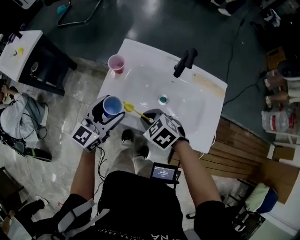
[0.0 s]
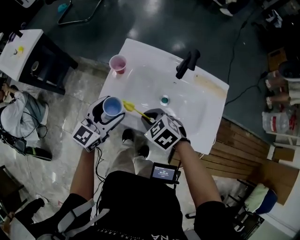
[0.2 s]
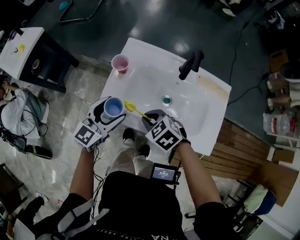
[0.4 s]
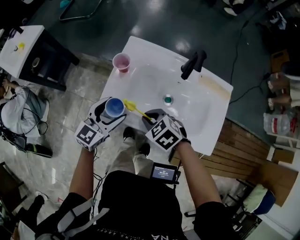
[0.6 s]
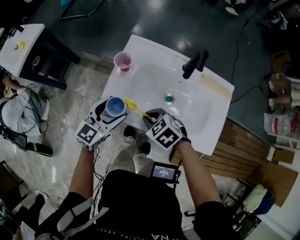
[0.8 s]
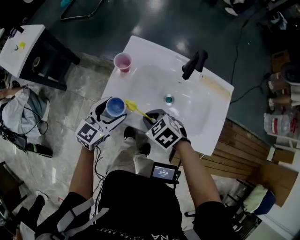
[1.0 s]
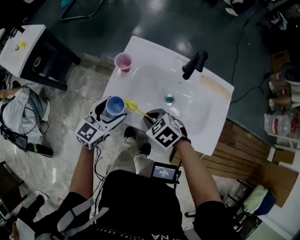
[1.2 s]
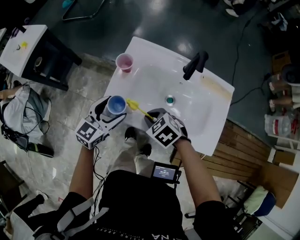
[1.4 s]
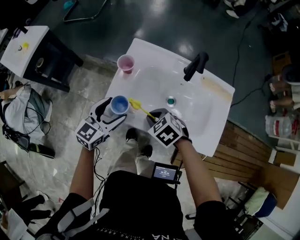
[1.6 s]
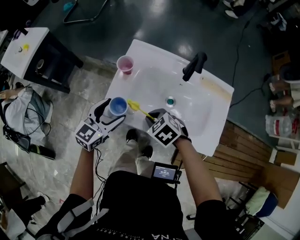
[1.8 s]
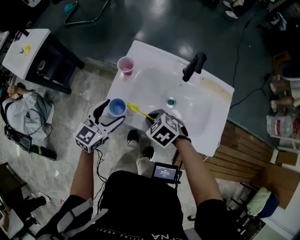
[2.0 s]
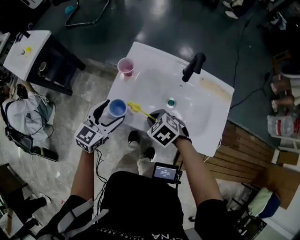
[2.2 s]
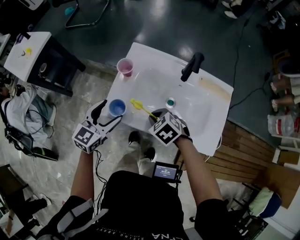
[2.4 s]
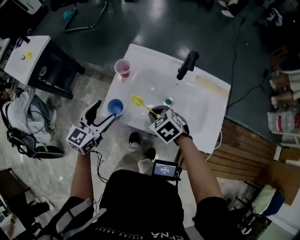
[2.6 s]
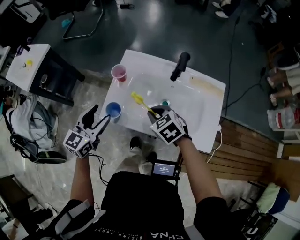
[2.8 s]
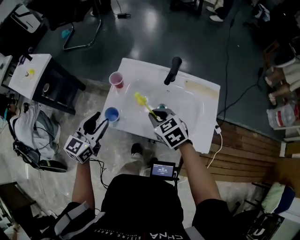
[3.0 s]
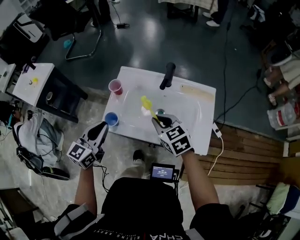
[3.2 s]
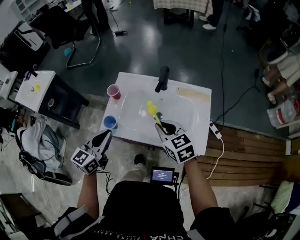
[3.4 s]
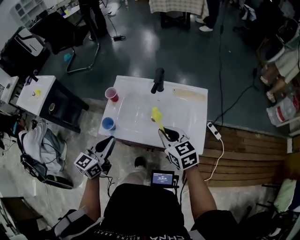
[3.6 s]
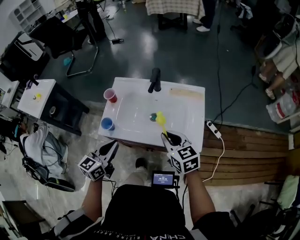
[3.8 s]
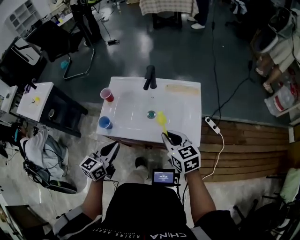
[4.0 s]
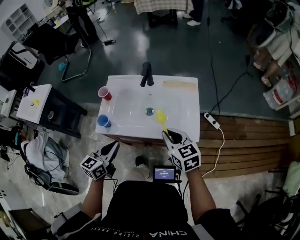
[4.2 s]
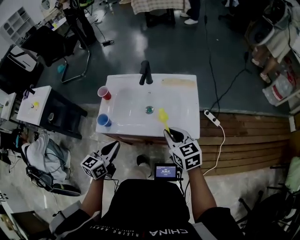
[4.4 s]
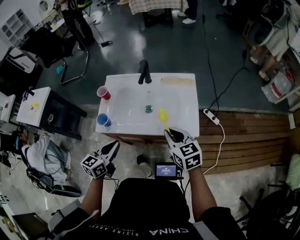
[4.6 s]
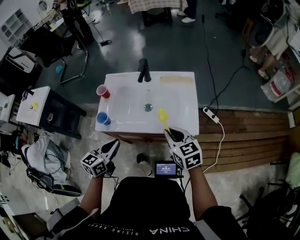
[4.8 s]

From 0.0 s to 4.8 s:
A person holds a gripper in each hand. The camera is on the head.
From 0.0 s to 1.6 s: The left gripper is displaced downward by roughly 5 cm.
From 1.6 s to 3.2 s: The left gripper moves upward, some 10 cm, and closes. Meanwhile the right gripper travels upward and to the right by about 15 cm, and swivels about 30 degrees.
From 3.2 s to 4.8 s: The left gripper moves backward, to the right and downward, approximately 15 cm. Meanwhile the right gripper is displaced backward and to the right by approximately 20 cm, and turns by some 20 degrees.

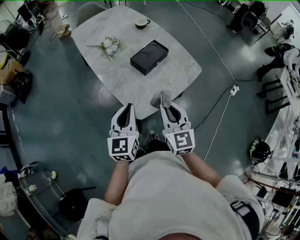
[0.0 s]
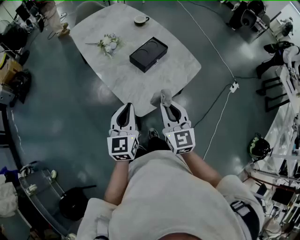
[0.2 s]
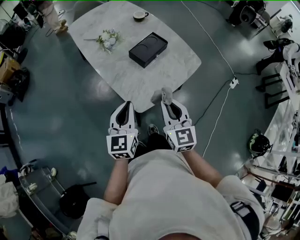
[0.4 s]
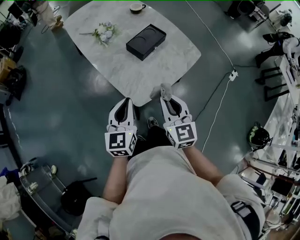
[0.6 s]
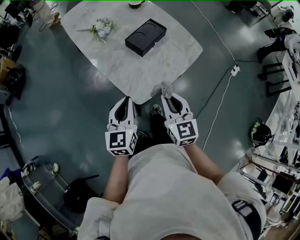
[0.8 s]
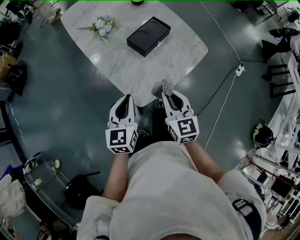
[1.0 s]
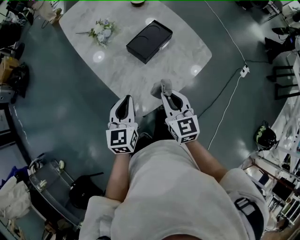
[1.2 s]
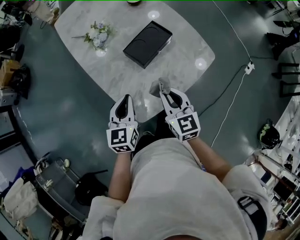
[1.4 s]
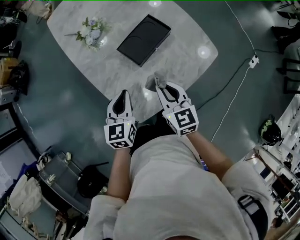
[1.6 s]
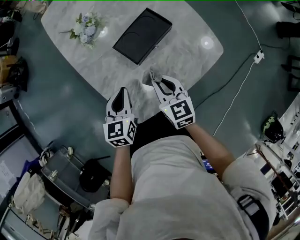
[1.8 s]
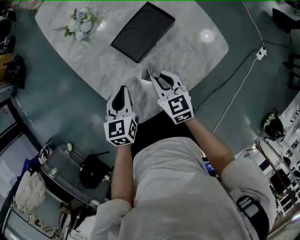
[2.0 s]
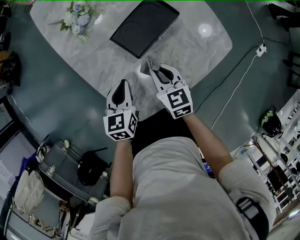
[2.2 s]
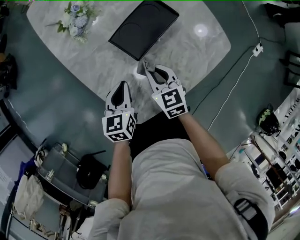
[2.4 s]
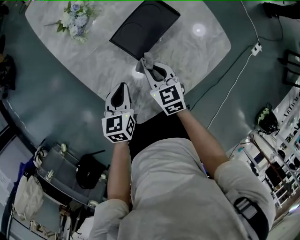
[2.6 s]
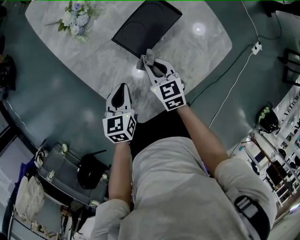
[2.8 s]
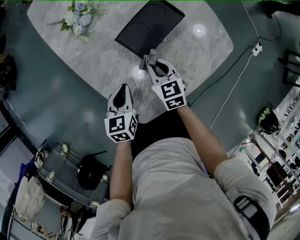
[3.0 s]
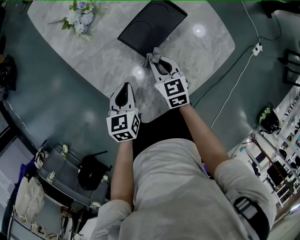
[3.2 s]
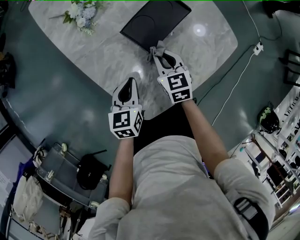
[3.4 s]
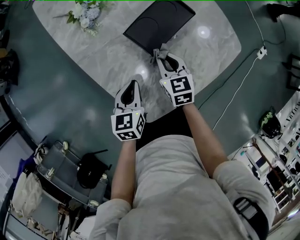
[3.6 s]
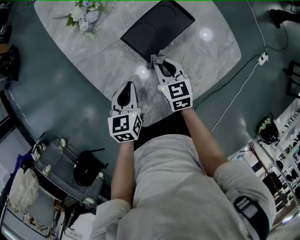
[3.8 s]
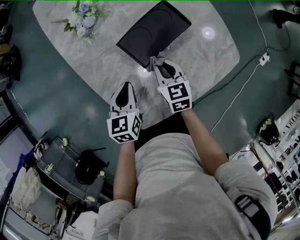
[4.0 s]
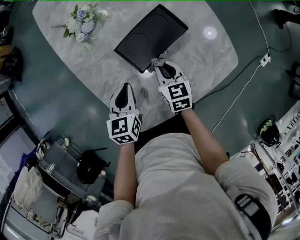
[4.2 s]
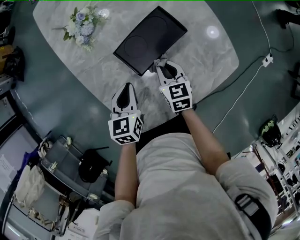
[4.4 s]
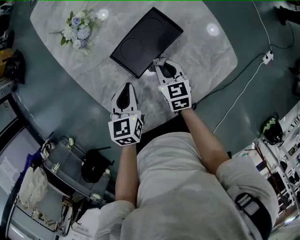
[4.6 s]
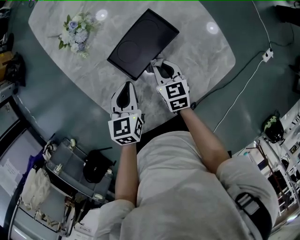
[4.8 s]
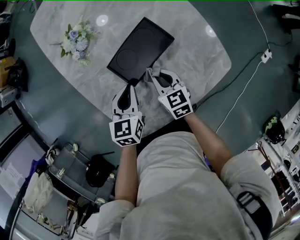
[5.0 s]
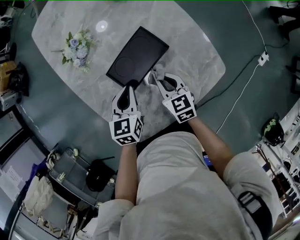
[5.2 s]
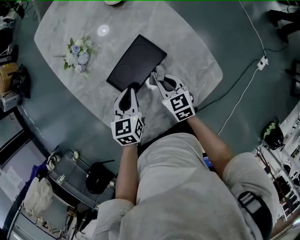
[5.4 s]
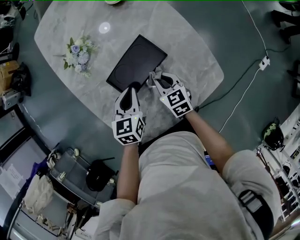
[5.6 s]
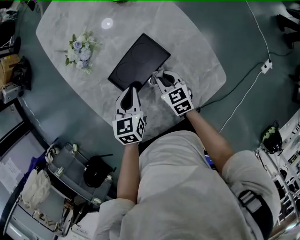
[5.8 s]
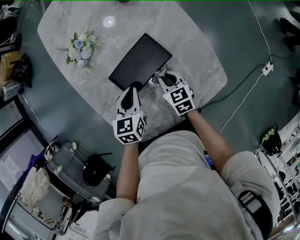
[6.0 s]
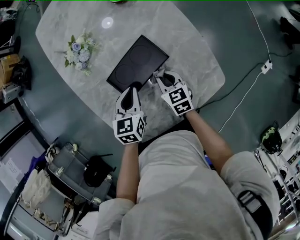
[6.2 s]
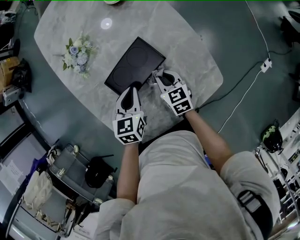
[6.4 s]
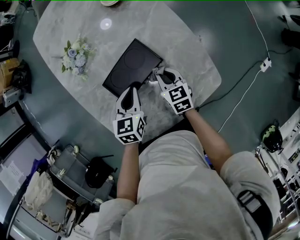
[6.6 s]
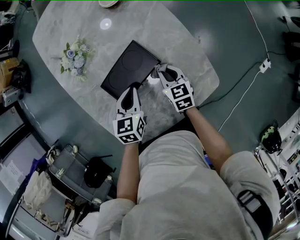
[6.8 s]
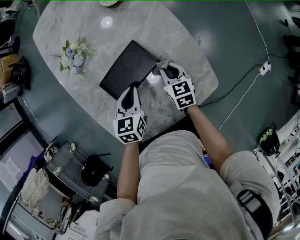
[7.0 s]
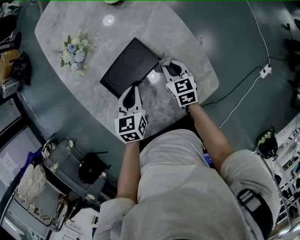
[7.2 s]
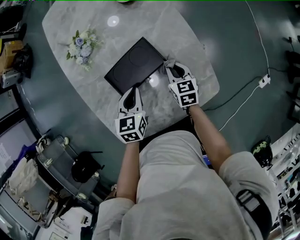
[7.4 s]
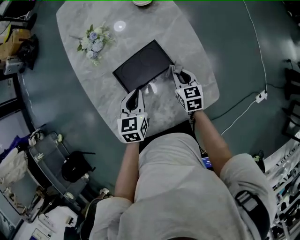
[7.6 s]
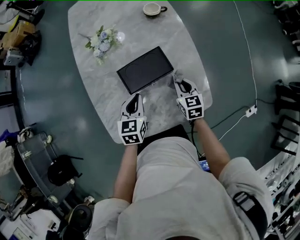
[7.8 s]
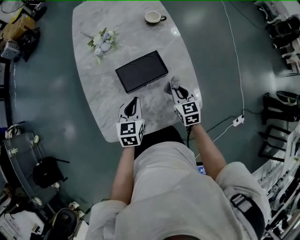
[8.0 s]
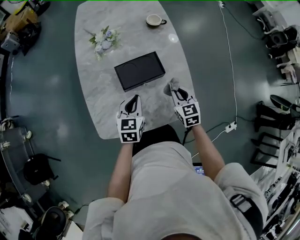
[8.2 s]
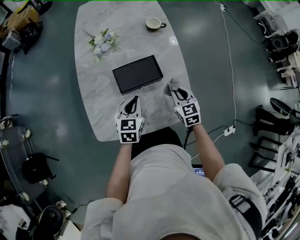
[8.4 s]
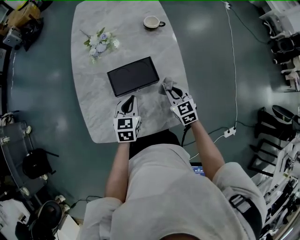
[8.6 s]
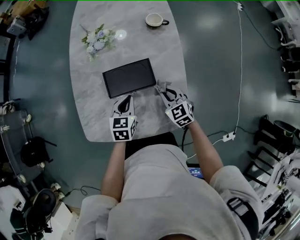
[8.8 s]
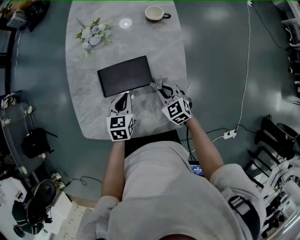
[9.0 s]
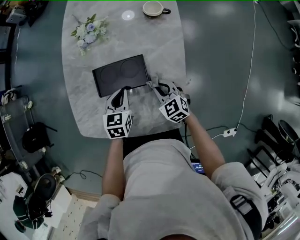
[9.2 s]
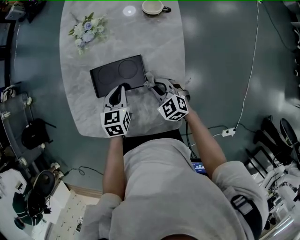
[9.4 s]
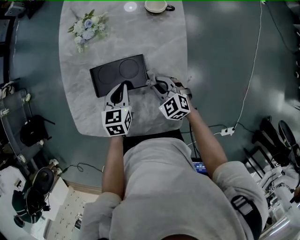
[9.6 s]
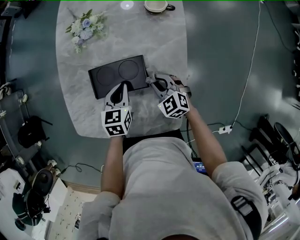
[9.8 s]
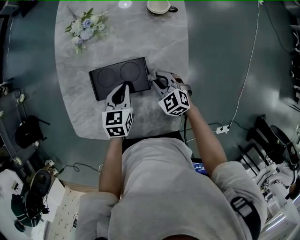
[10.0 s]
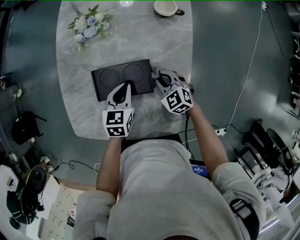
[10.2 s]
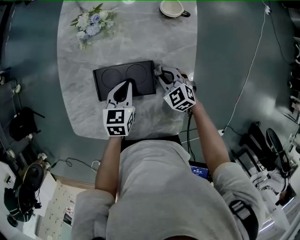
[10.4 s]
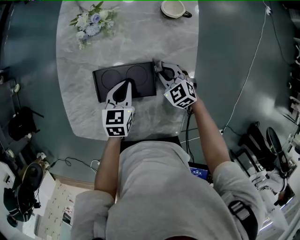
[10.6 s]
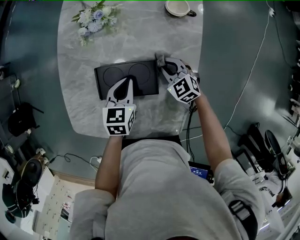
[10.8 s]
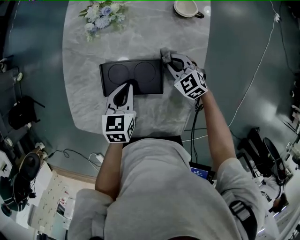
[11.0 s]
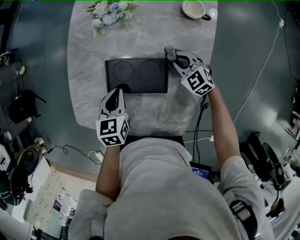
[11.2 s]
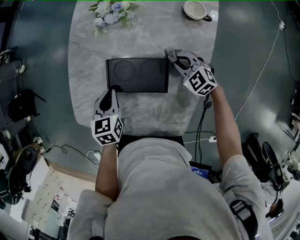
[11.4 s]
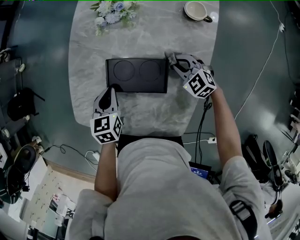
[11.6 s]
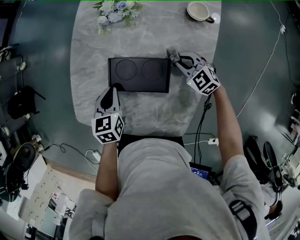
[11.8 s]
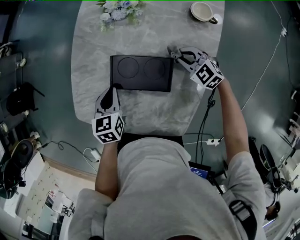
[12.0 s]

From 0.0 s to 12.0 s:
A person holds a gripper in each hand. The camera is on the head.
From 0.0 s to 1.6 s: Both grippers move forward and downward, roughly 25 cm. The right gripper changes its angle by about 20 degrees.
From 1.6 s to 3.0 s: The left gripper shifts about 10 cm downward; the right gripper goes about 15 cm downward and forward.
From 3.0 s to 4.4 s: The right gripper heads to the right, covering some 5 cm. Meanwhile the left gripper travels forward by roughly 5 cm.
From 4.4 s to 6.0 s: The left gripper travels to the right and forward by approximately 10 cm. Meanwhile the right gripper moves to the right, roughly 5 cm.
From 6.0 s to 7.6 s: The right gripper is displaced to the right by approximately 10 cm.
From 7.6 s to 9.0 s: The right gripper travels upward and back again, approximately 10 cm each way, and turns by roughly 50 degrees.
From 9.0 s to 10.4 s: The grippers both shift forward by some 10 cm.
From 10.4 s to 12.0 s: The left gripper shifts by approximately 15 cm, and swivels approximately 20 degrees. Meanwhile the right gripper shifts by about 5 cm, and rotates about 20 degrees.

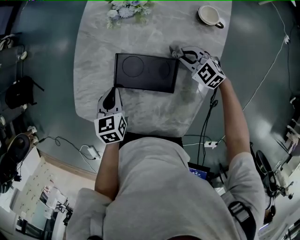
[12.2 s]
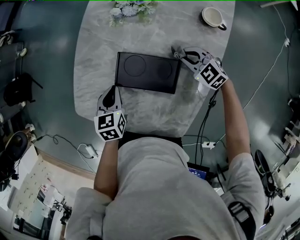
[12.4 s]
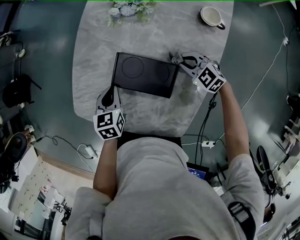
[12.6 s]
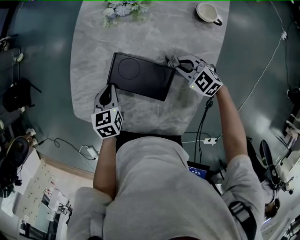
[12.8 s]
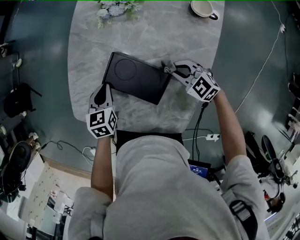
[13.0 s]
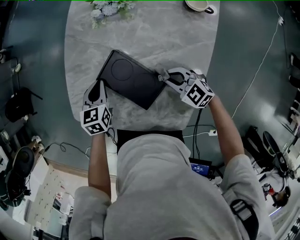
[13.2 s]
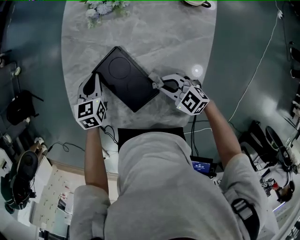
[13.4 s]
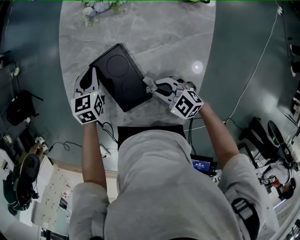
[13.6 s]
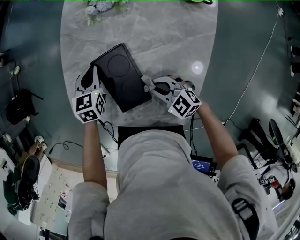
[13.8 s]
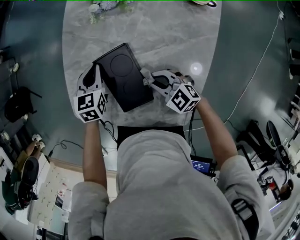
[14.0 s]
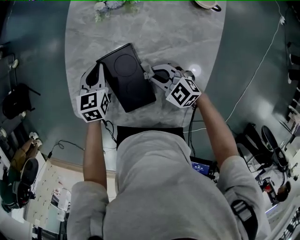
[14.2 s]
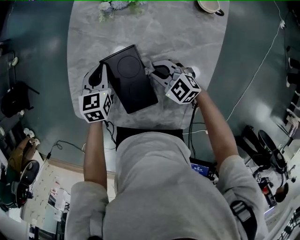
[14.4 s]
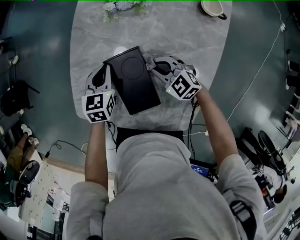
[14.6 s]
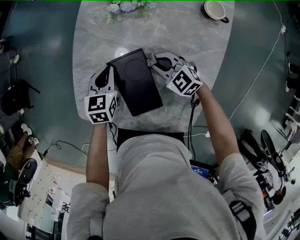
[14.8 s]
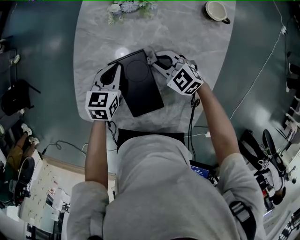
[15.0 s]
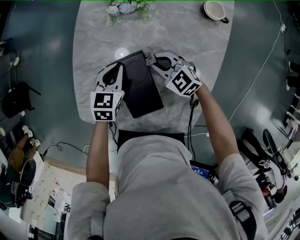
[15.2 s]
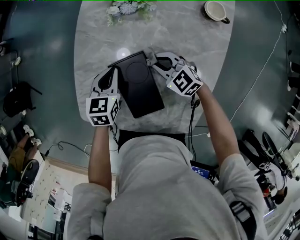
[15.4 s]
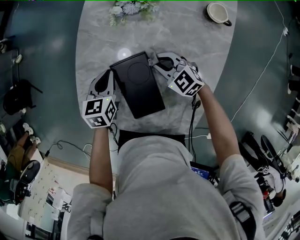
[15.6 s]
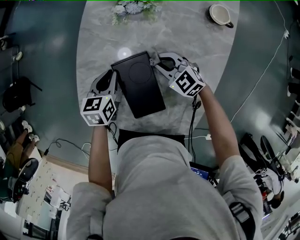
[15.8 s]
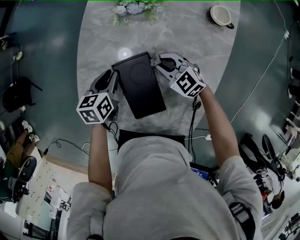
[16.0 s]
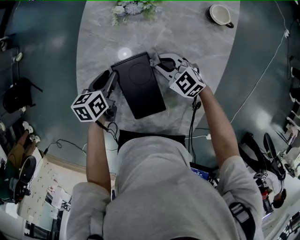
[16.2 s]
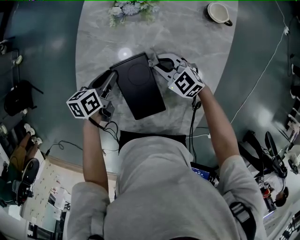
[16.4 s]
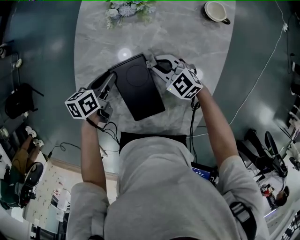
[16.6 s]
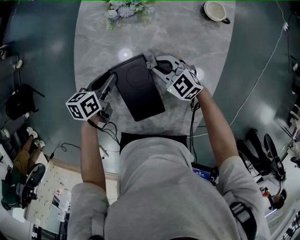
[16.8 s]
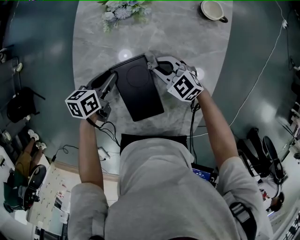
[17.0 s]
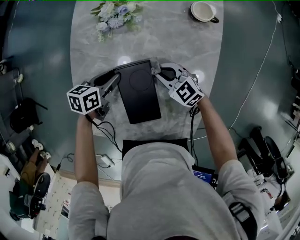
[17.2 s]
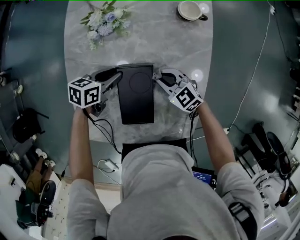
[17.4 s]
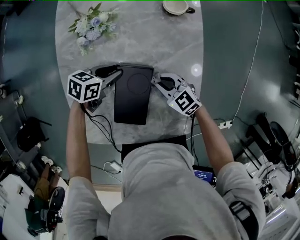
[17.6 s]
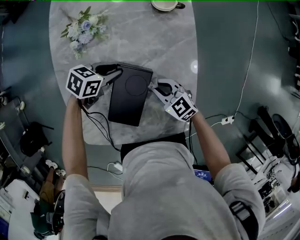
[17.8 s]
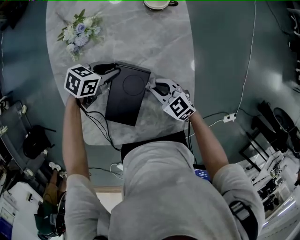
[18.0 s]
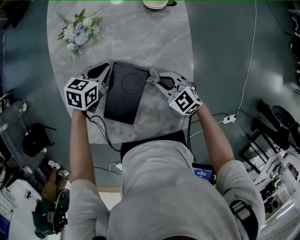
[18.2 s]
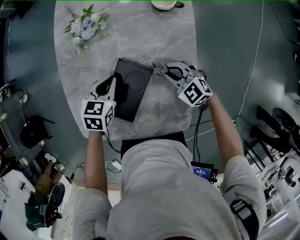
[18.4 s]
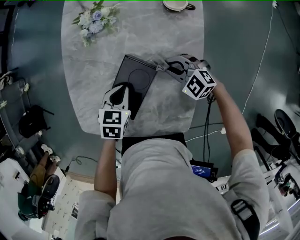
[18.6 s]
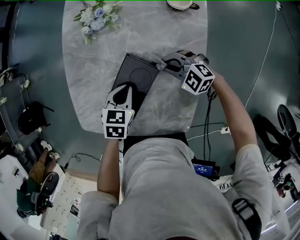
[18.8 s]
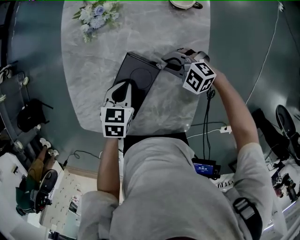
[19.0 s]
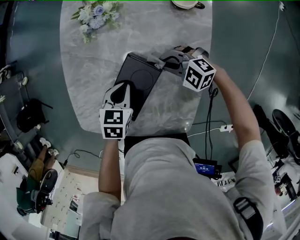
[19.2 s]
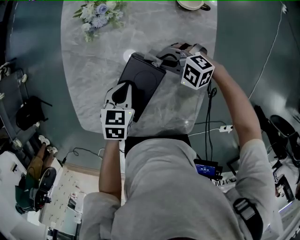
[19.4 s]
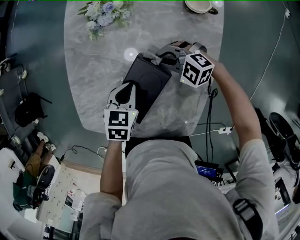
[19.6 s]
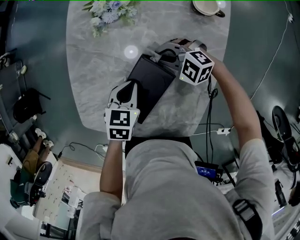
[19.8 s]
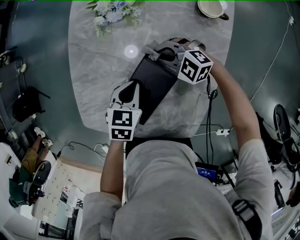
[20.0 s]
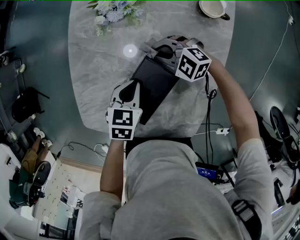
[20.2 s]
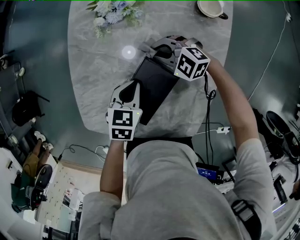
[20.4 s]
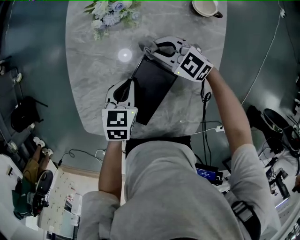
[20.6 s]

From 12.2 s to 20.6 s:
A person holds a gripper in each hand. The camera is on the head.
From 12.2 s to 13.6 s: The left gripper is displaced forward by about 10 cm. Meanwhile the right gripper heads to the left and backward, covering approximately 20 cm.
From 13.6 s to 15.0 s: The right gripper is displaced forward by roughly 15 cm.
From 15.0 s to 16.4 s: The left gripper rotates roughly 30 degrees, and opens.
From 16.4 s to 17.8 s: The right gripper ends up some 15 cm from where it was, and turns by roughly 30 degrees. Meanwhile the left gripper moves some 20 cm, and swivels approximately 60 degrees.
From 17.8 s to 19.2 s: The right gripper changes place by roughly 5 cm, and rolls counterclockwise, seen from behind, by about 40 degrees; the left gripper ends up approximately 10 cm from where it was, rotates about 40 degrees, and closes its fingers.
From 19.2 s to 20.6 s: The right gripper heads forward, covering some 10 cm, and changes its angle by about 20 degrees. The left gripper moves roughly 5 cm.
